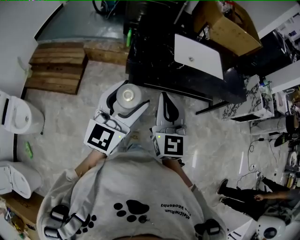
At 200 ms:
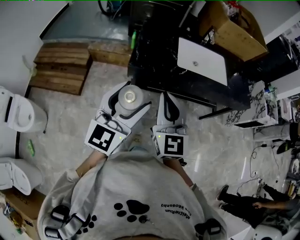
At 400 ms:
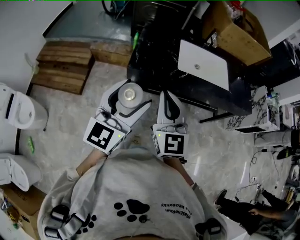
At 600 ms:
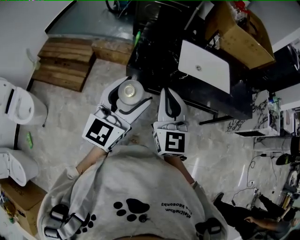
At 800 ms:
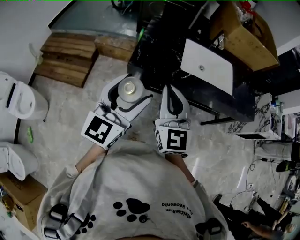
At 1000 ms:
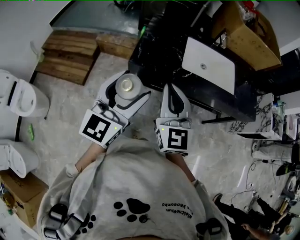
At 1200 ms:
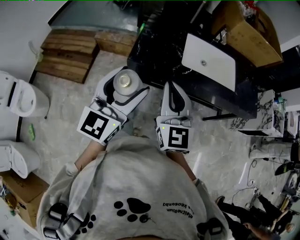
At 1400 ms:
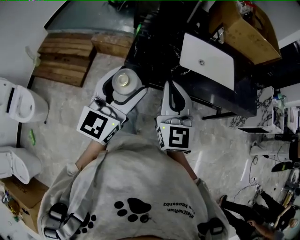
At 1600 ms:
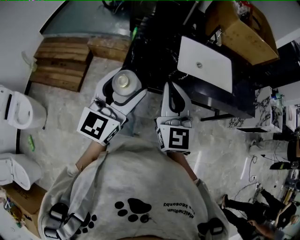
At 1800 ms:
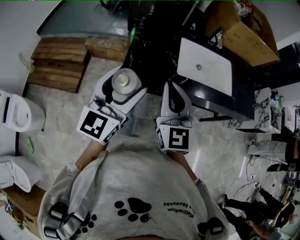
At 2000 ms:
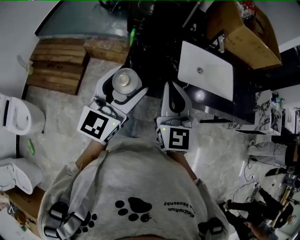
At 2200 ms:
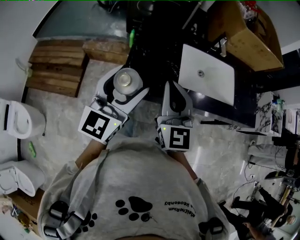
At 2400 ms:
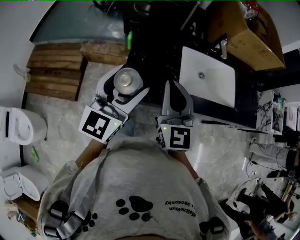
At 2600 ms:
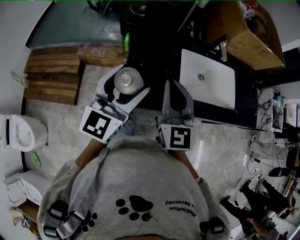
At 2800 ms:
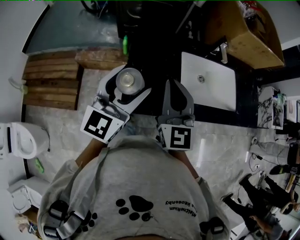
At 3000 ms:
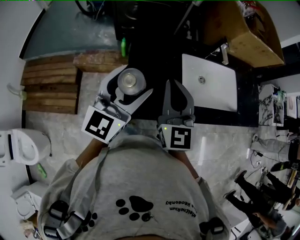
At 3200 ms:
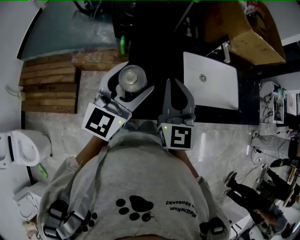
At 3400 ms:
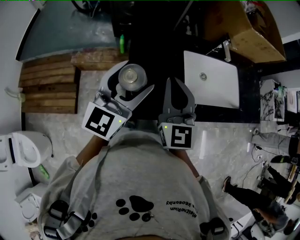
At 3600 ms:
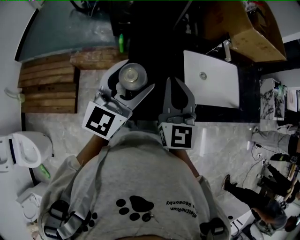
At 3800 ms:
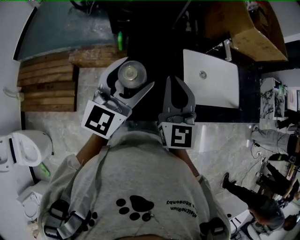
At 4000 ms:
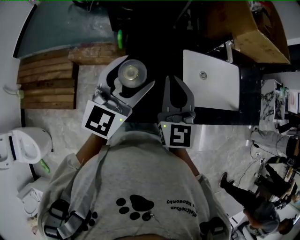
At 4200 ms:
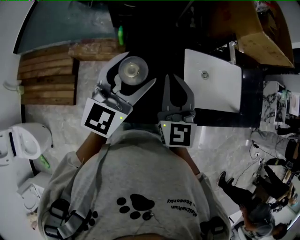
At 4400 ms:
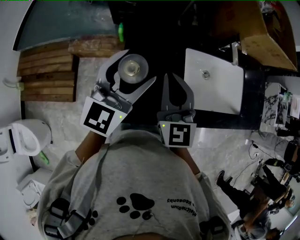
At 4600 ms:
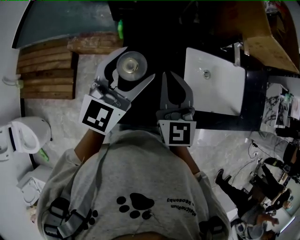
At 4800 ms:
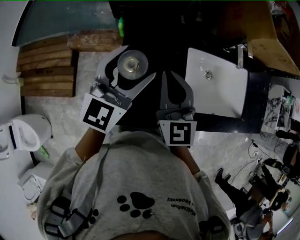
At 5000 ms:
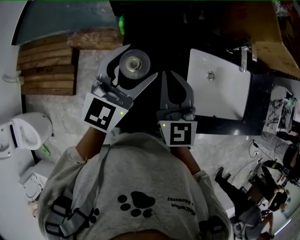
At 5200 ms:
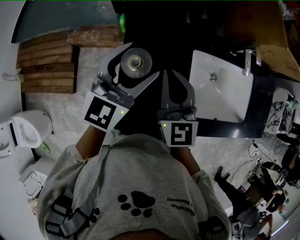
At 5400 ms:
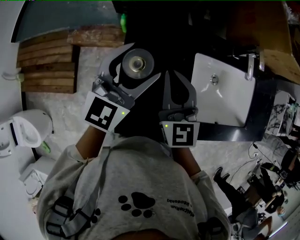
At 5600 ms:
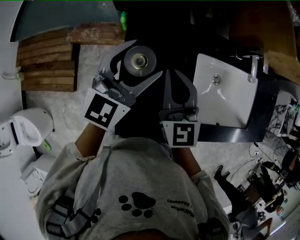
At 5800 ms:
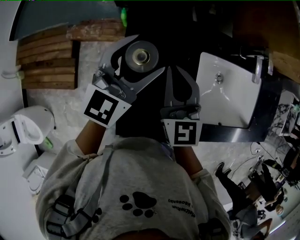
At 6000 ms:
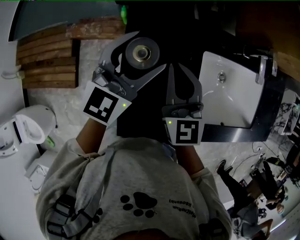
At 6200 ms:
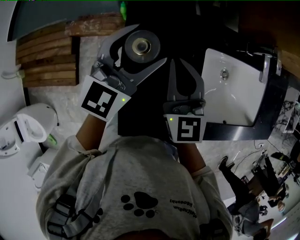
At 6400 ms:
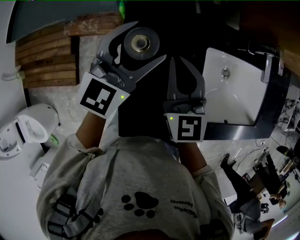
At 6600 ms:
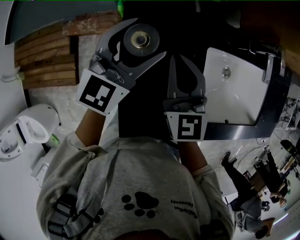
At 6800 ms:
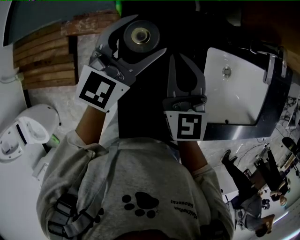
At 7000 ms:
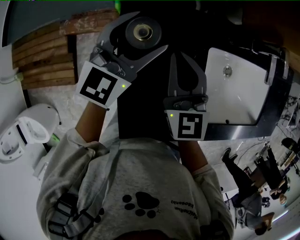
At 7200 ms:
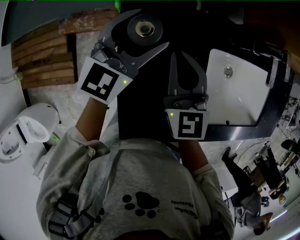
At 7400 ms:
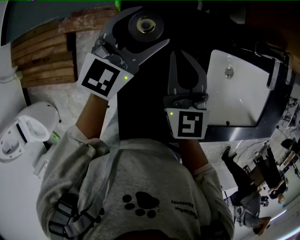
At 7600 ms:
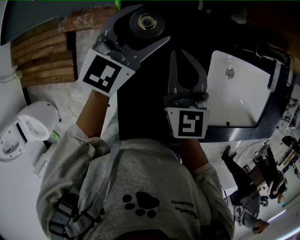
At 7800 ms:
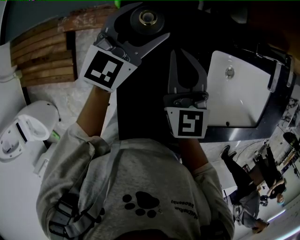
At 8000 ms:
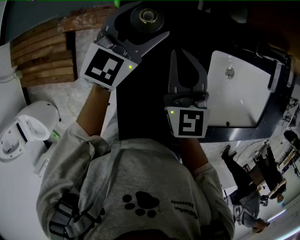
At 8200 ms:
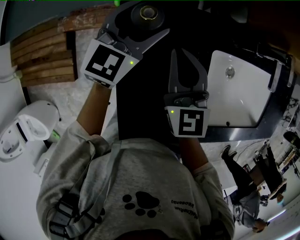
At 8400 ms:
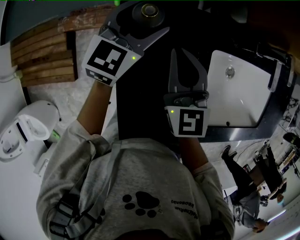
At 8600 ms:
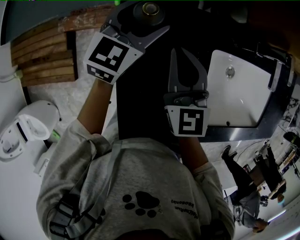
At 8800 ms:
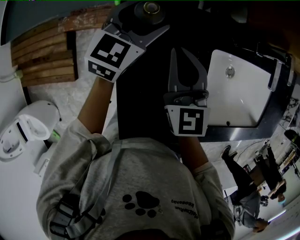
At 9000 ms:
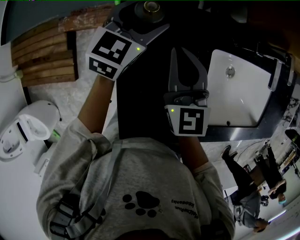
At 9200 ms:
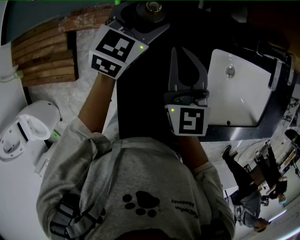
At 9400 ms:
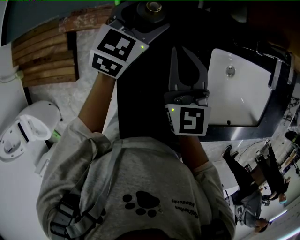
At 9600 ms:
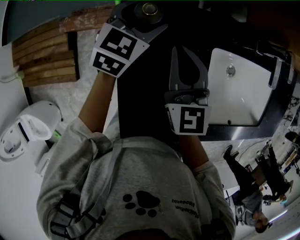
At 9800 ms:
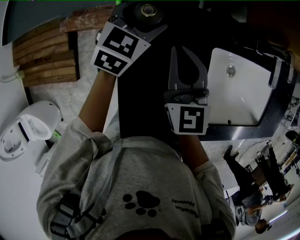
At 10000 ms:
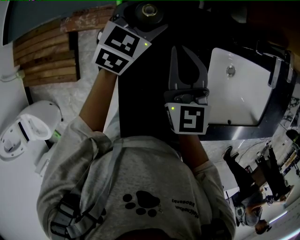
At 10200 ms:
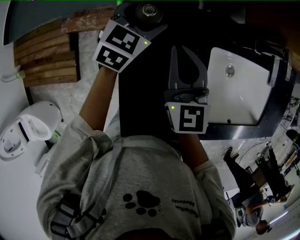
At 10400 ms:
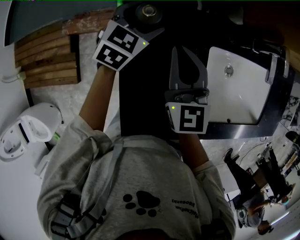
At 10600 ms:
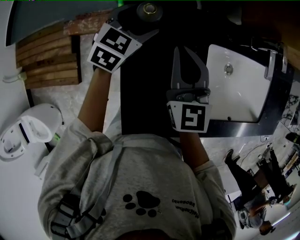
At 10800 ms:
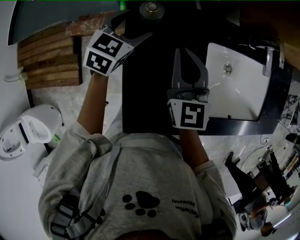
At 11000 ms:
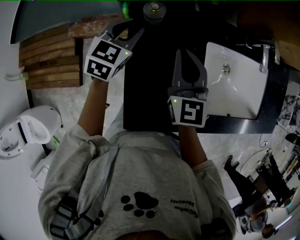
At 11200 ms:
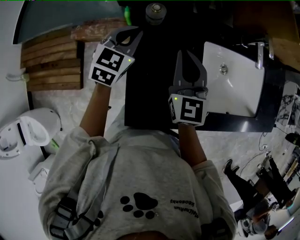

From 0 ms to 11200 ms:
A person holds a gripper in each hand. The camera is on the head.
From 0 ms to 1600 ms: Both grippers move forward, some 15 cm.
From 1600 ms to 3200 ms: Both grippers move forward, some 25 cm.
From 3200 ms to 4800 ms: Both grippers move forward, about 10 cm.
From 4800 ms to 6400 ms: Both grippers travel together forward and downward, some 15 cm.
From 6400 ms to 8000 ms: The left gripper heads forward and downward, covering some 10 cm. Meanwhile the right gripper changes place by about 5 cm.
From 8000 ms to 9600 ms: There are only small adjustments of the grippers.
From 9600 ms to 11200 ms: The left gripper moves backward, roughly 10 cm, and closes its fingers. Meanwhile the right gripper heads backward, covering some 5 cm.

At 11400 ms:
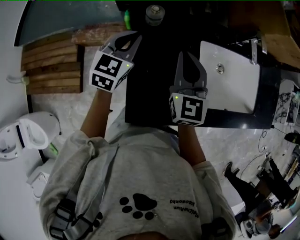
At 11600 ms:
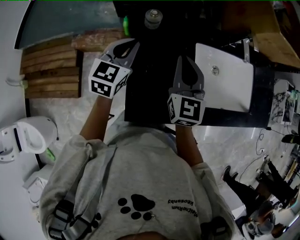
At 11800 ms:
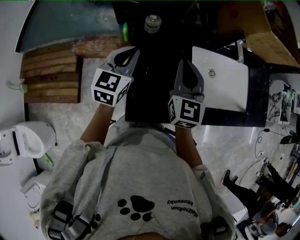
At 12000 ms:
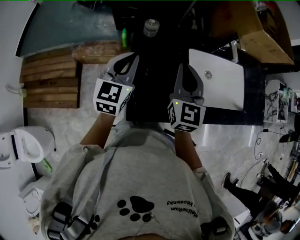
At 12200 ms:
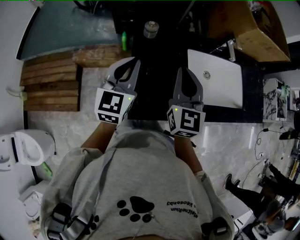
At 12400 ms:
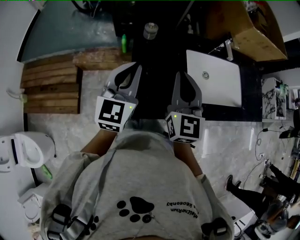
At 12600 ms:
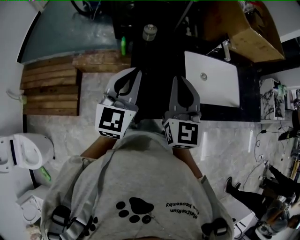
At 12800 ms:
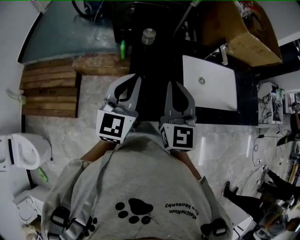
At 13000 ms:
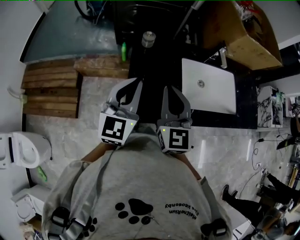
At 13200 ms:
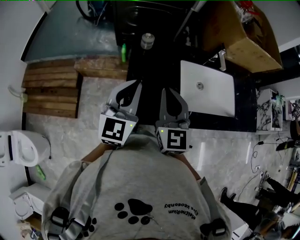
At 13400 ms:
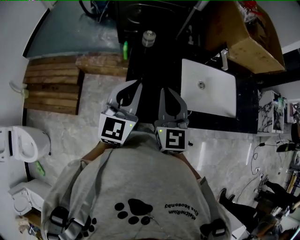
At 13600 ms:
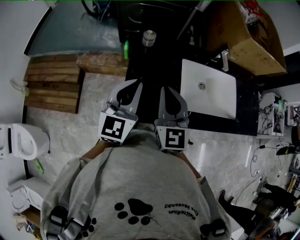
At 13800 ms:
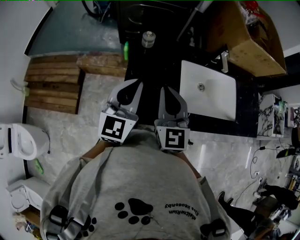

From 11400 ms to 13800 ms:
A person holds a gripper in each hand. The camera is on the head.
From 11400 ms to 12600 ms: The grippers both shift backward and upward by approximately 20 cm. The left gripper turns by about 20 degrees.
From 12600 ms to 13800 ms: There are only small adjustments of the grippers.

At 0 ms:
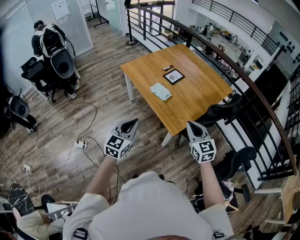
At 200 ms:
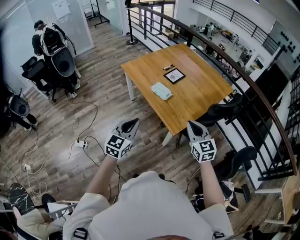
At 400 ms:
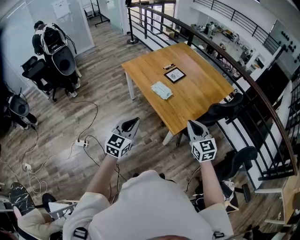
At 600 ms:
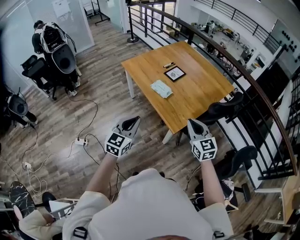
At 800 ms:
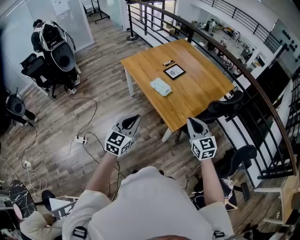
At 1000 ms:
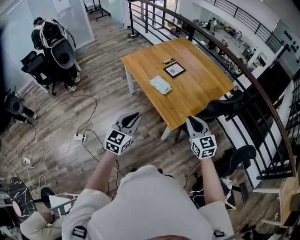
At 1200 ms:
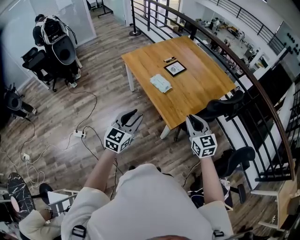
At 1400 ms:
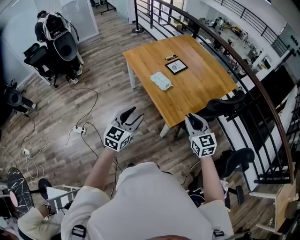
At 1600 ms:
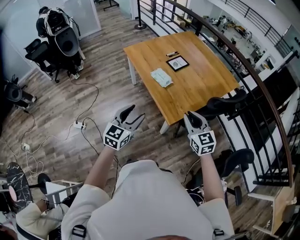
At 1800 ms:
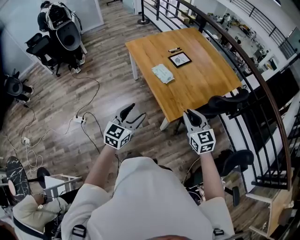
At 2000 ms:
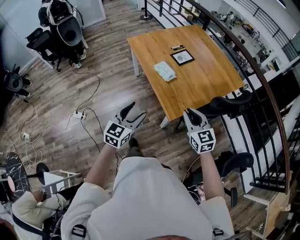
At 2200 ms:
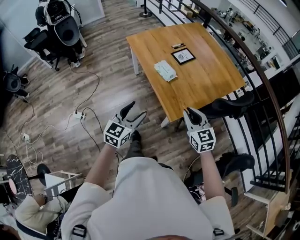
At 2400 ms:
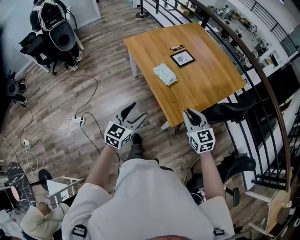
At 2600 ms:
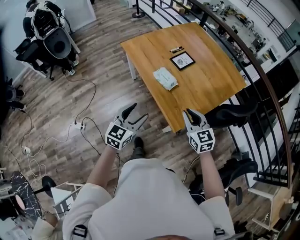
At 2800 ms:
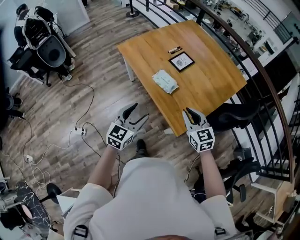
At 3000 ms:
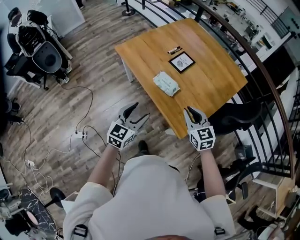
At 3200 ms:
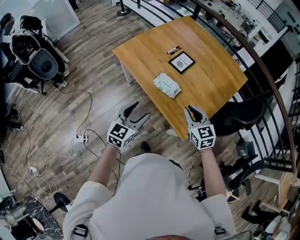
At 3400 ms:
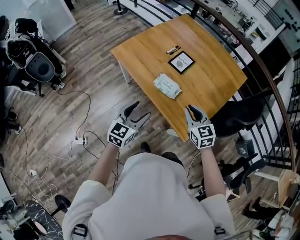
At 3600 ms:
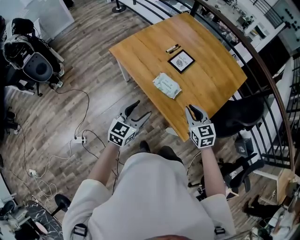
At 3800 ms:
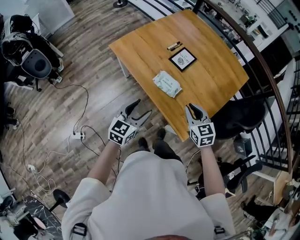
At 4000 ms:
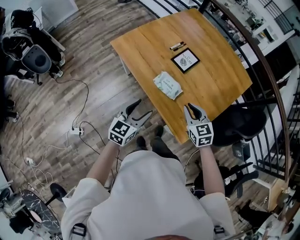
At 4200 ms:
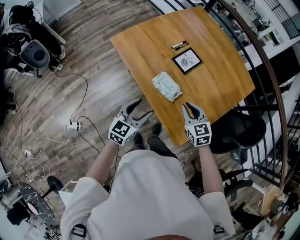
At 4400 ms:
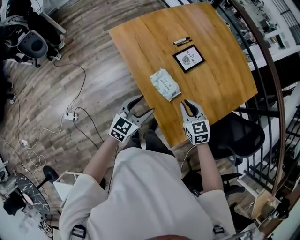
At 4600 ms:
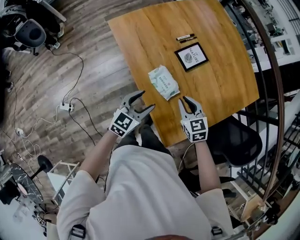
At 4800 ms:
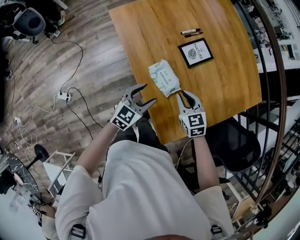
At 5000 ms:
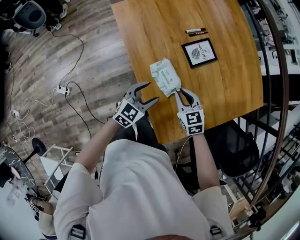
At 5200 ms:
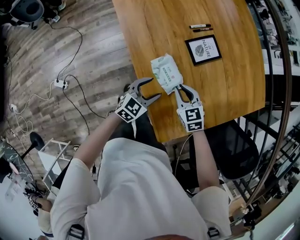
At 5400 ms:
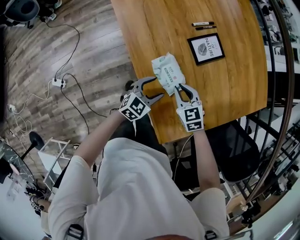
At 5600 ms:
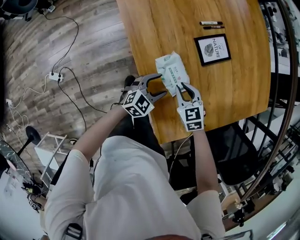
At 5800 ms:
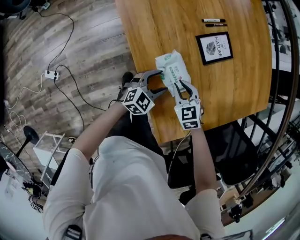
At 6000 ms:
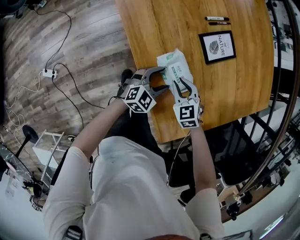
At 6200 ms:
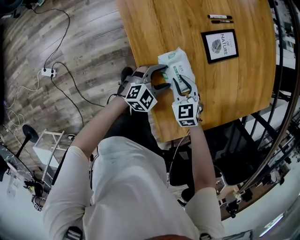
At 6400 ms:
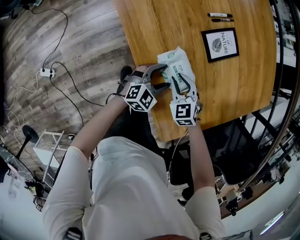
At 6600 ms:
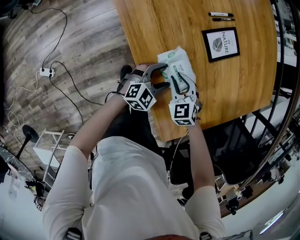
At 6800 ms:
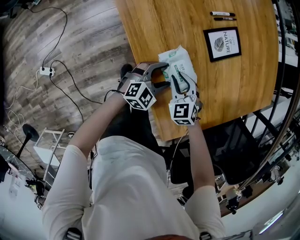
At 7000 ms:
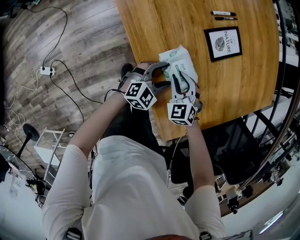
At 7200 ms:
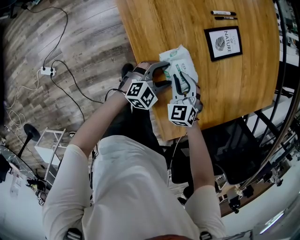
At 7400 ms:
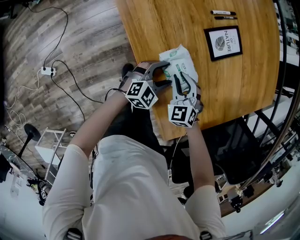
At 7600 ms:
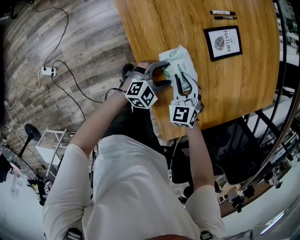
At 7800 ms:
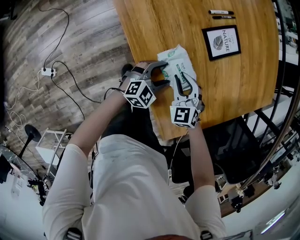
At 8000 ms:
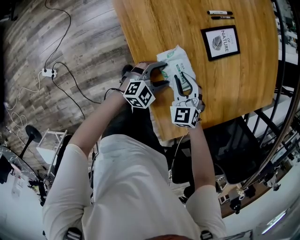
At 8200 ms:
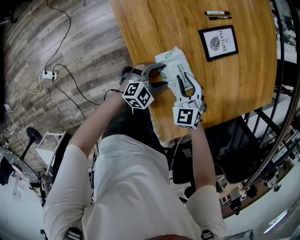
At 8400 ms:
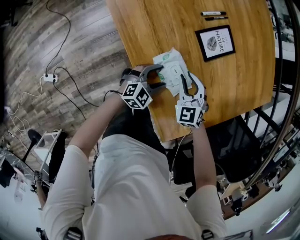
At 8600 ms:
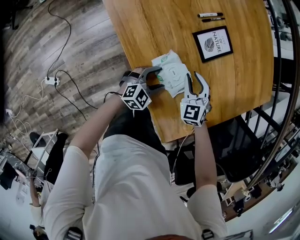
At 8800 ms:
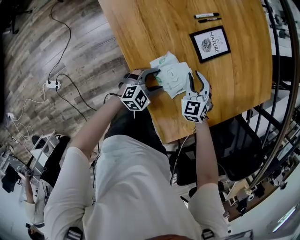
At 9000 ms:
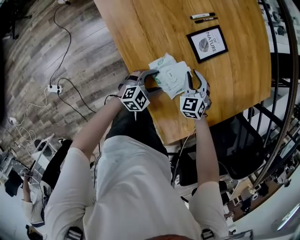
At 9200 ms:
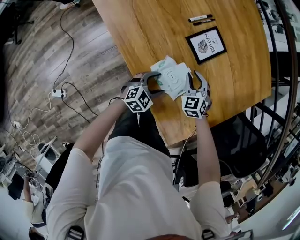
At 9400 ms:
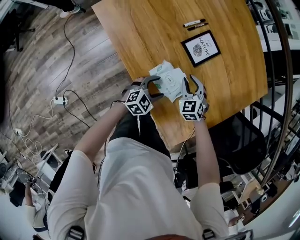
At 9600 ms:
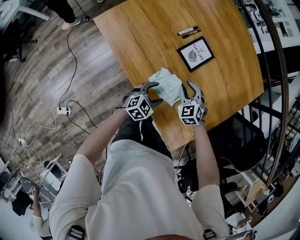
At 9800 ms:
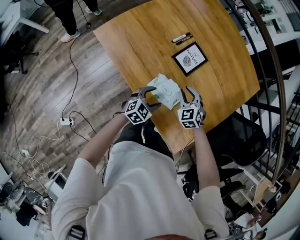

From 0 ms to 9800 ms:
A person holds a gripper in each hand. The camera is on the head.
From 0 ms to 1400 ms: The left gripper heads to the right, covering about 5 cm, and opens up.
From 1400 ms to 2800 ms: Both grippers travel together forward, about 20 cm.
From 2800 ms to 4200 ms: The left gripper shifts about 15 cm forward. Meanwhile the right gripper goes some 20 cm forward and downward.
From 4200 ms to 5600 ms: The grippers both shift downward and forward by about 25 cm. The right gripper turns by about 30 degrees.
From 5600 ms to 7000 ms: Both grippers move downward, roughly 5 cm. The right gripper changes its angle by roughly 20 degrees.
From 7000 ms to 8400 ms: The right gripper is displaced upward by some 5 cm.
From 8400 ms to 9800 ms: The left gripper moves upward, about 10 cm, while the right gripper is displaced upward by some 5 cm.
